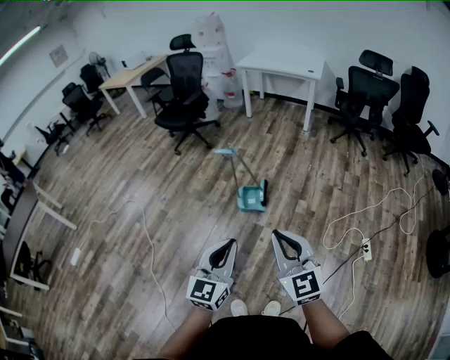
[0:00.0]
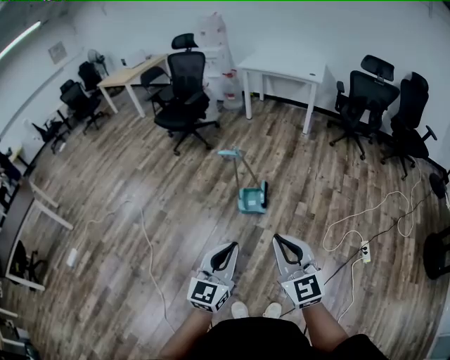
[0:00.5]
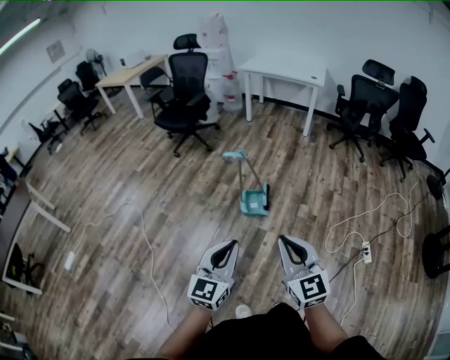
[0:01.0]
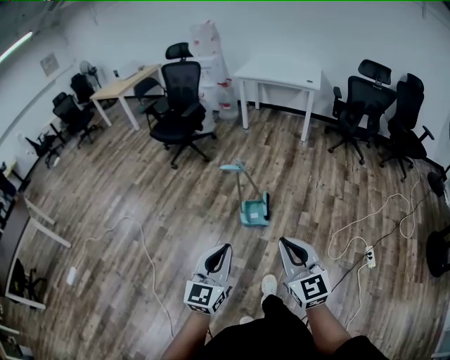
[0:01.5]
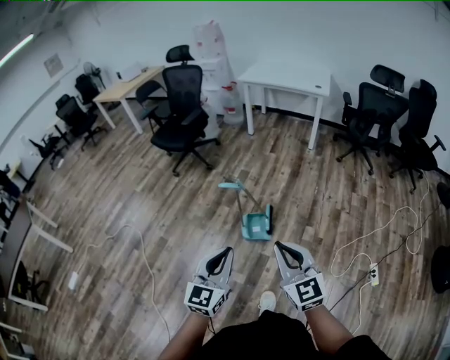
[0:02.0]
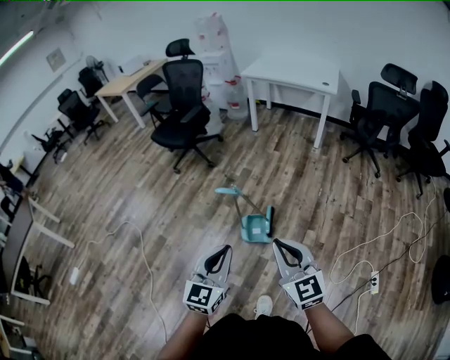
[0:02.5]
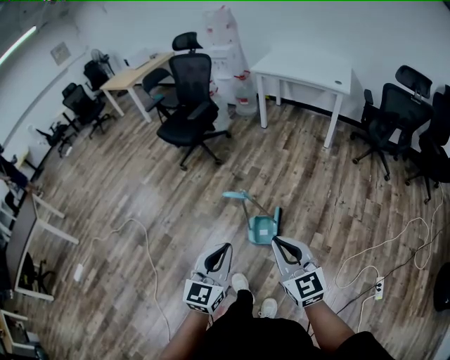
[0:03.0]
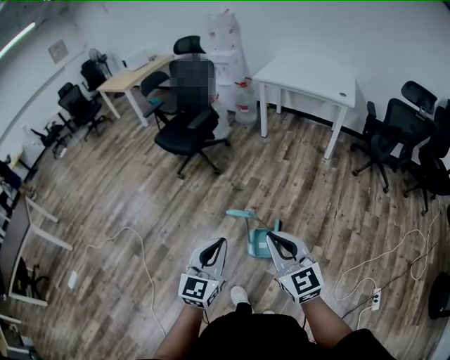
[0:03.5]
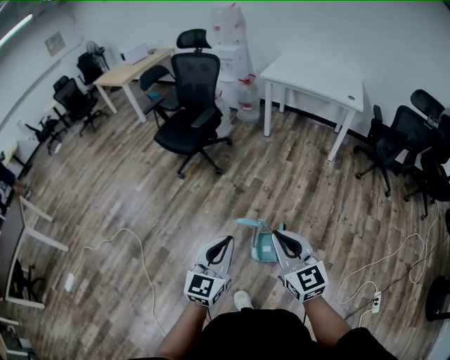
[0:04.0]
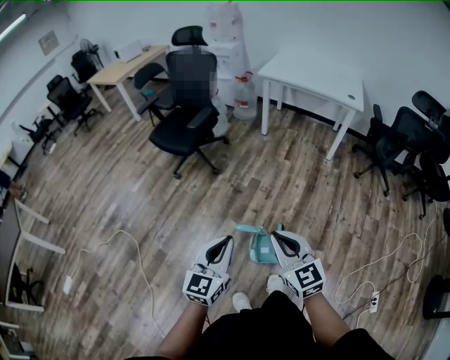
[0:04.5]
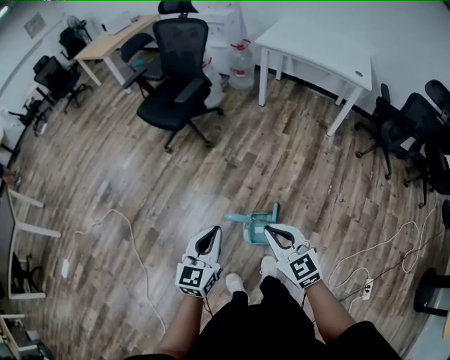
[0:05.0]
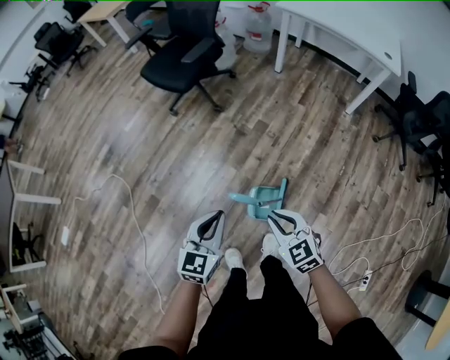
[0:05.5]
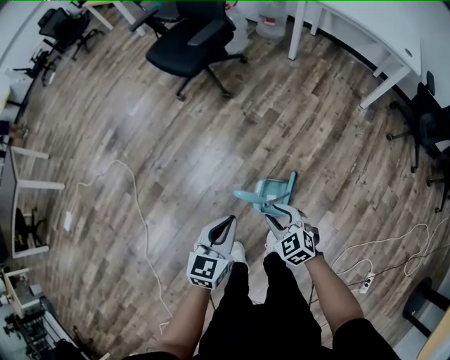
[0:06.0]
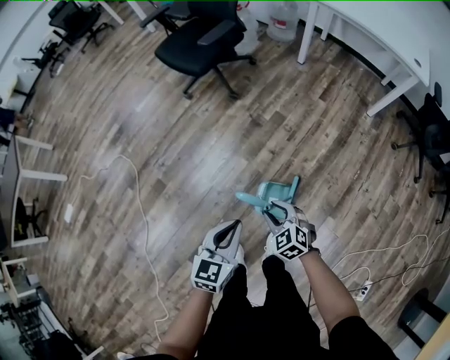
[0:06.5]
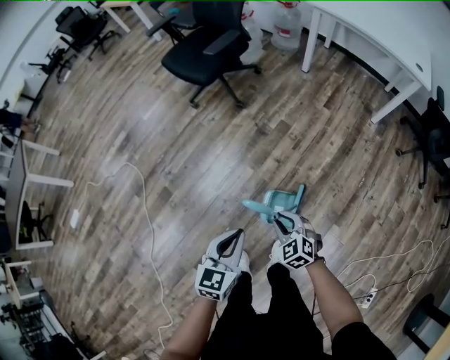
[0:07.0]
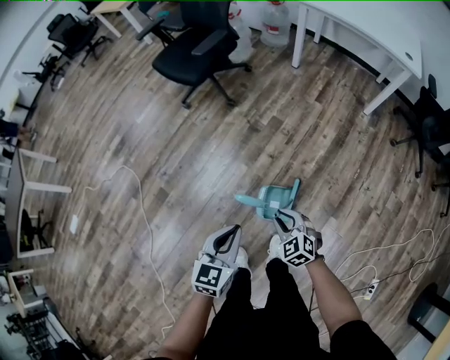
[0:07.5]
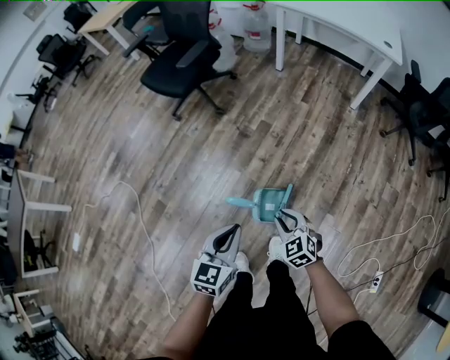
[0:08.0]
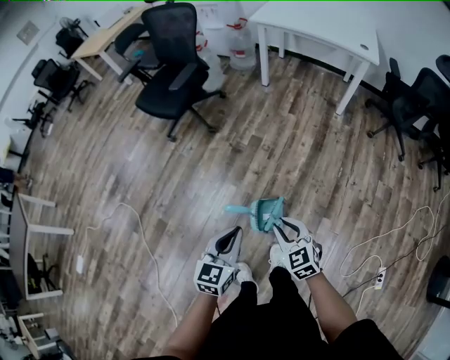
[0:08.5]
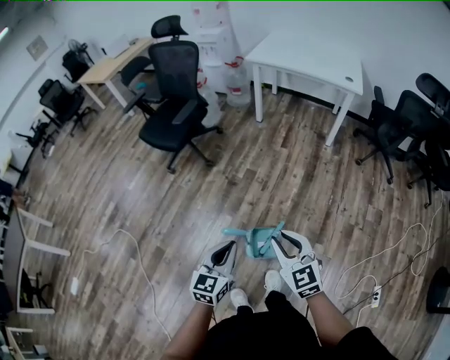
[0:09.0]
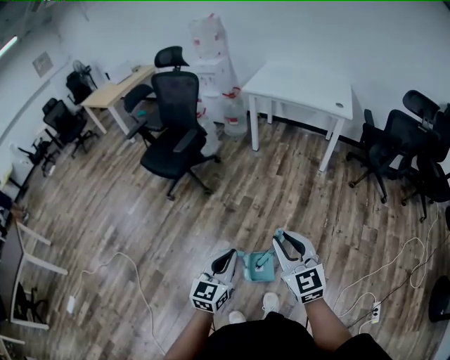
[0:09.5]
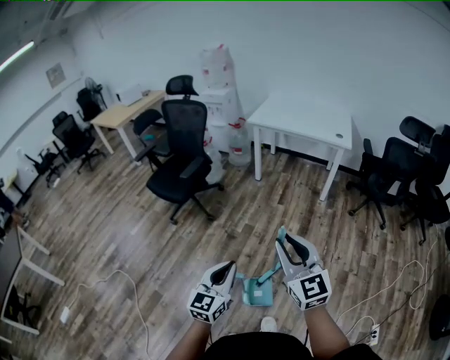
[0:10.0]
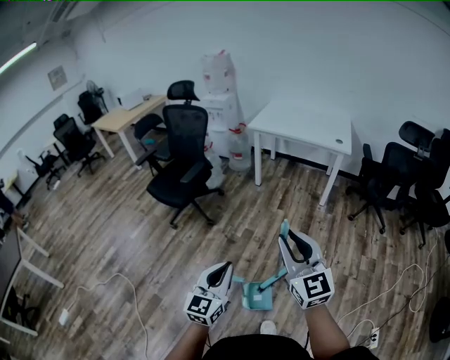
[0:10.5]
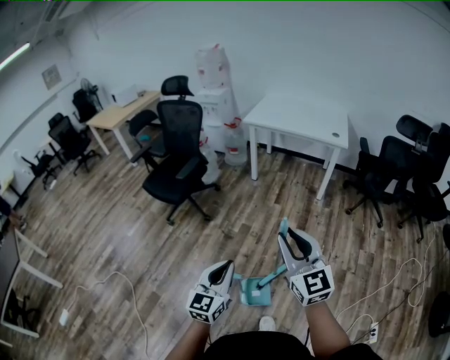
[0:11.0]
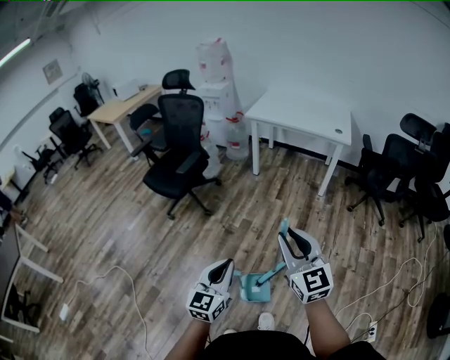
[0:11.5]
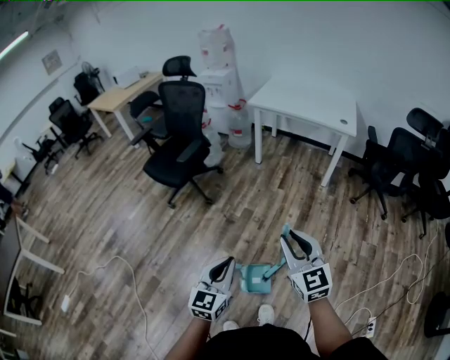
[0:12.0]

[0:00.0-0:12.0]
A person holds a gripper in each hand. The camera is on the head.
0:00.0 to 0:02.0: Both grippers travel together forward, some 15 cm.
0:02.0 to 0:04.0: Both grippers move forward, some 25 cm.
0:04.0 to 0:06.0: The right gripper shifts roughly 25 cm downward, tilts its fingers some 40 degrees downward, and opens its fingers. The left gripper shifts some 15 cm downward, and turns by approximately 20 degrees.
0:06.0 to 0:08.0: The grippers move only a little.
0:08.0 to 0:10.0: The right gripper travels upward by approximately 35 cm, and tilts its fingers roughly 40 degrees upward, while the left gripper shifts roughly 15 cm upward and forward, and swivels some 20 degrees.
0:10.0 to 0:12.0: The right gripper goes roughly 5 cm downward.

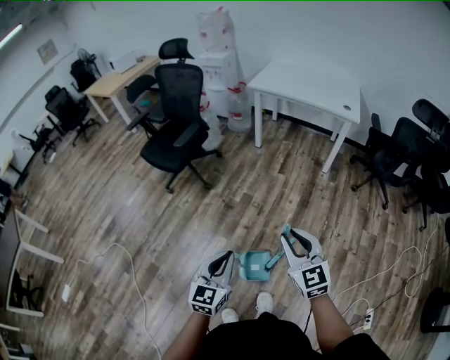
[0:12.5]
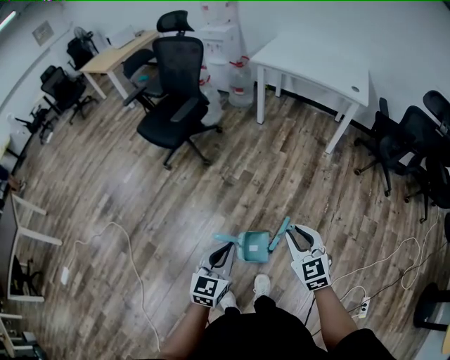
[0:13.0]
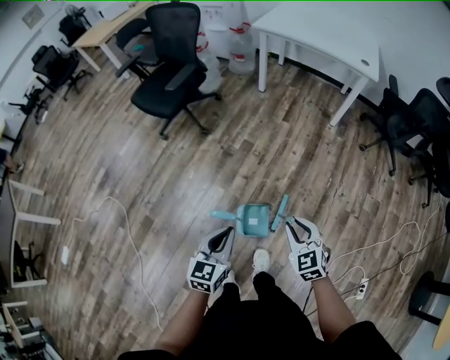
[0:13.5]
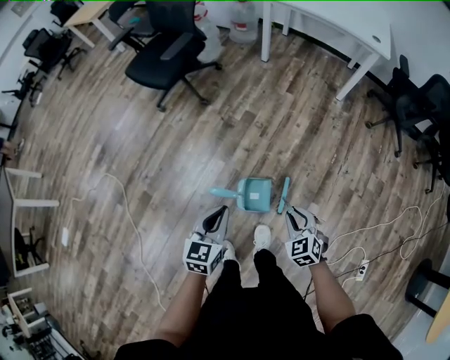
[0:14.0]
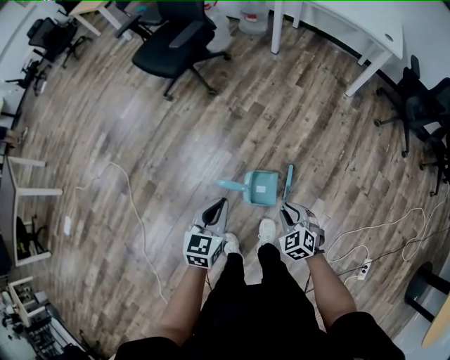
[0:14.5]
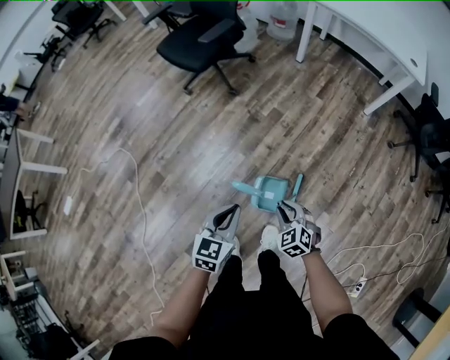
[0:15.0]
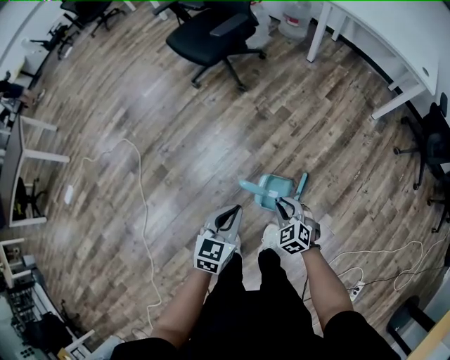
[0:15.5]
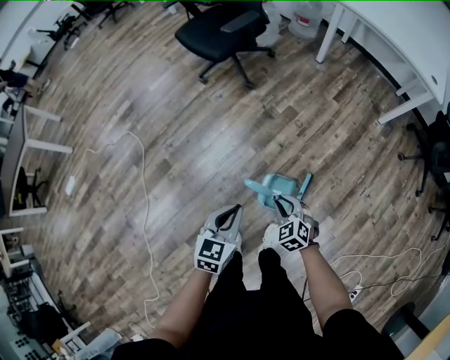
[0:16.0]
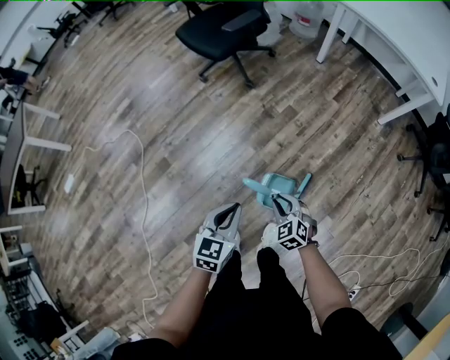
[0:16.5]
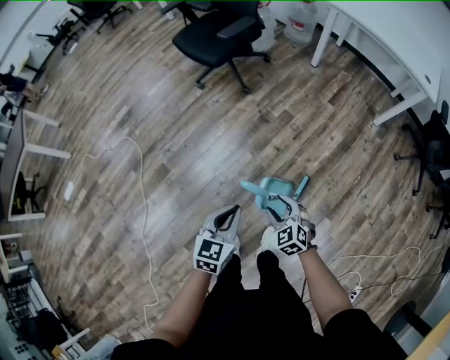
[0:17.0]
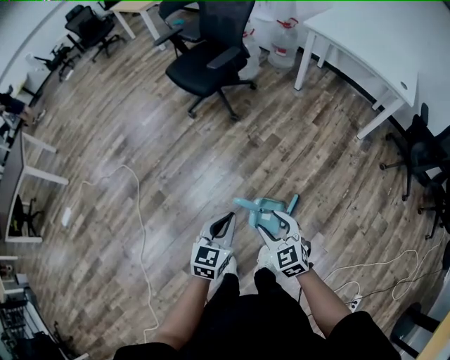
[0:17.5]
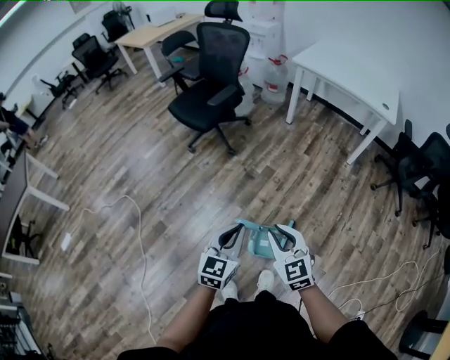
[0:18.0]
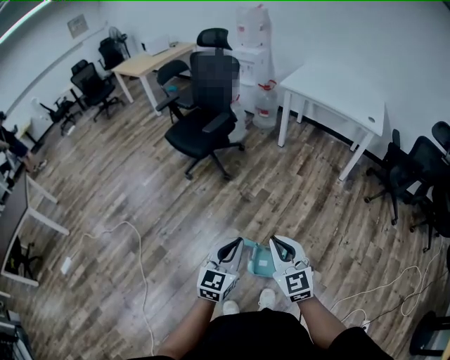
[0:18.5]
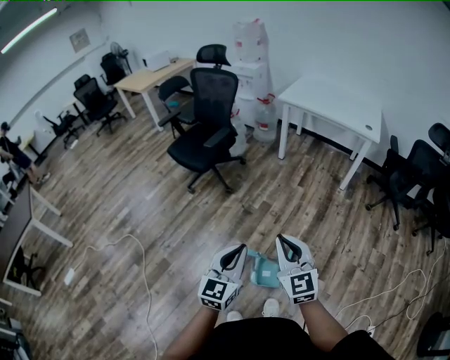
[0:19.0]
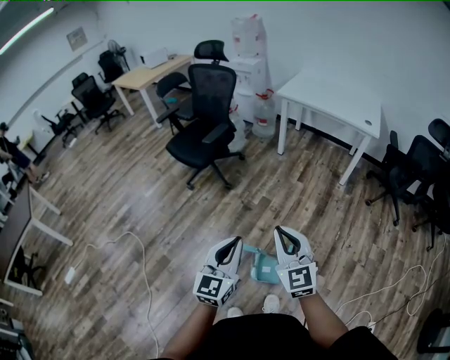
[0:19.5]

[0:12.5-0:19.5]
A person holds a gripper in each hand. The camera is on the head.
0:12.5 to 0:14.5: The left gripper goes roughly 10 cm downward; the right gripper travels downward by approximately 30 cm, and tilts its fingers roughly 40 degrees downward.
0:14.5 to 0:16.0: The right gripper shifts about 10 cm to the left and forward.
0:16.0 to 0:17.5: The right gripper shifts some 15 cm upward, and opens; the left gripper changes place by some 5 cm.
0:17.5 to 0:19.5: The two grippers go some 20 cm upward. The left gripper swivels roughly 20 degrees; the right gripper changes its angle by roughly 30 degrees, and closes its fingers.

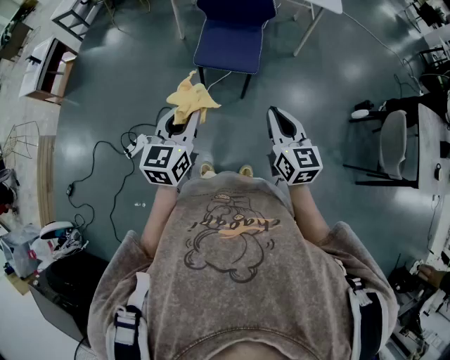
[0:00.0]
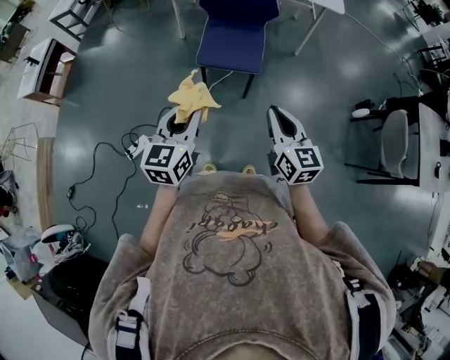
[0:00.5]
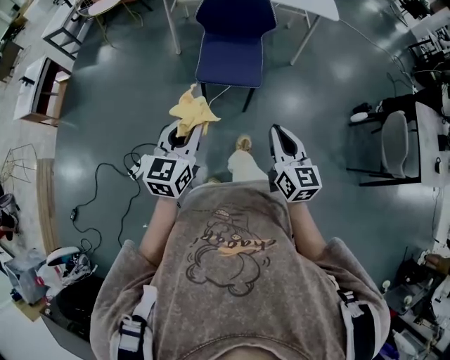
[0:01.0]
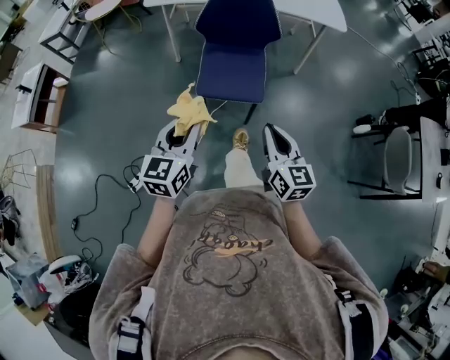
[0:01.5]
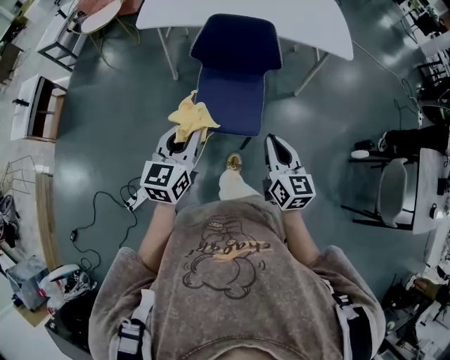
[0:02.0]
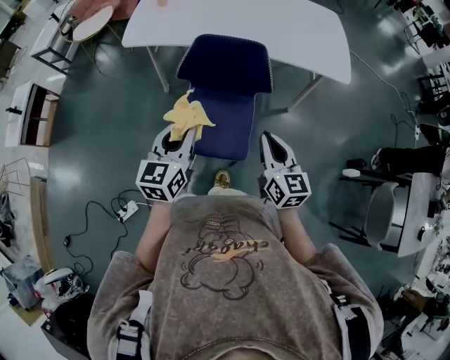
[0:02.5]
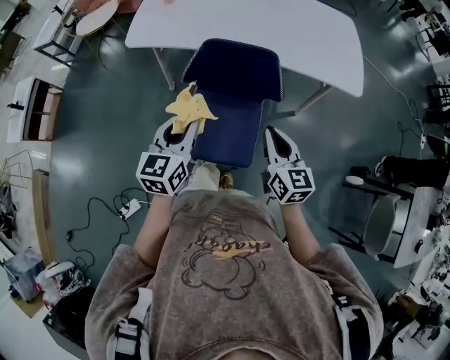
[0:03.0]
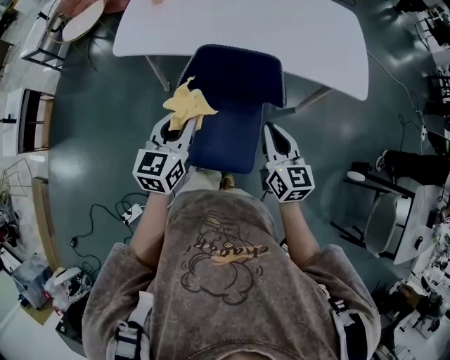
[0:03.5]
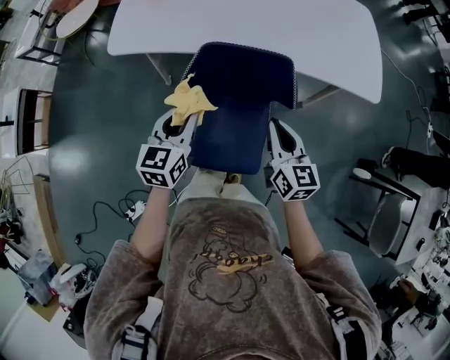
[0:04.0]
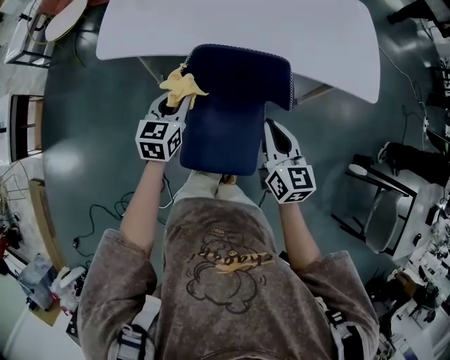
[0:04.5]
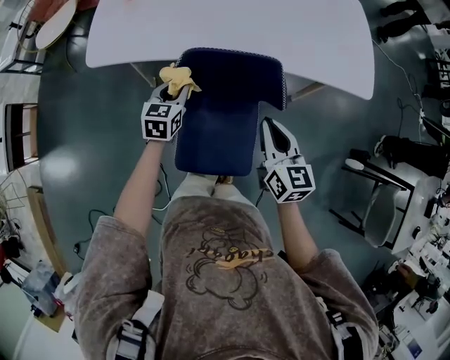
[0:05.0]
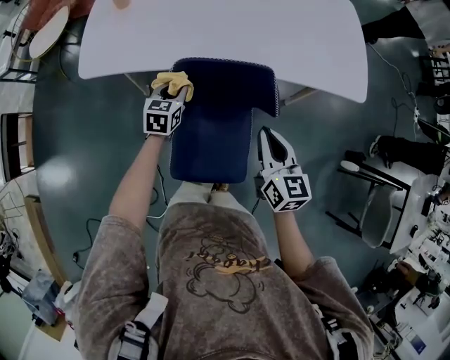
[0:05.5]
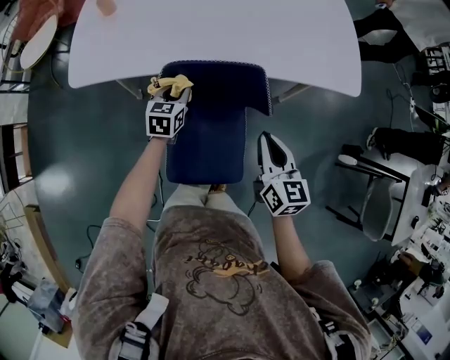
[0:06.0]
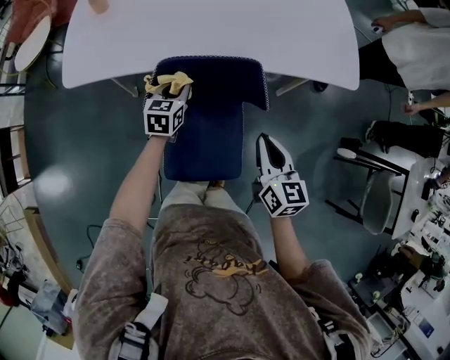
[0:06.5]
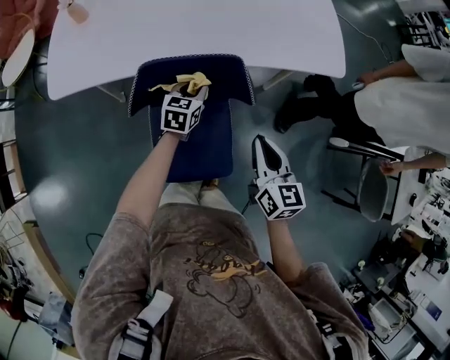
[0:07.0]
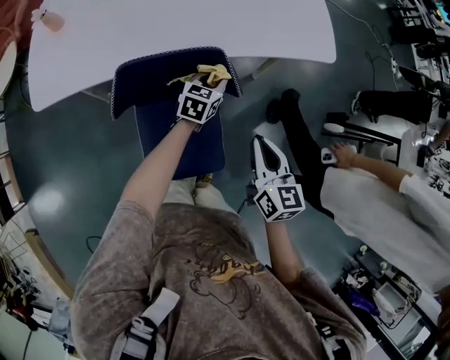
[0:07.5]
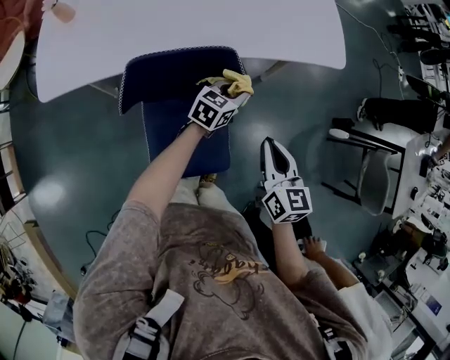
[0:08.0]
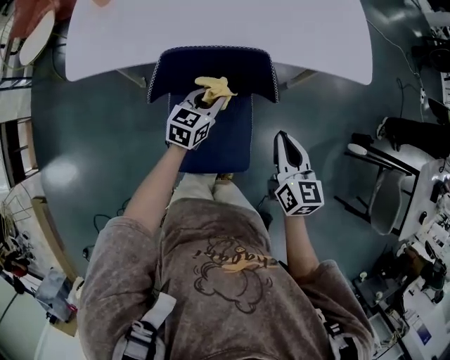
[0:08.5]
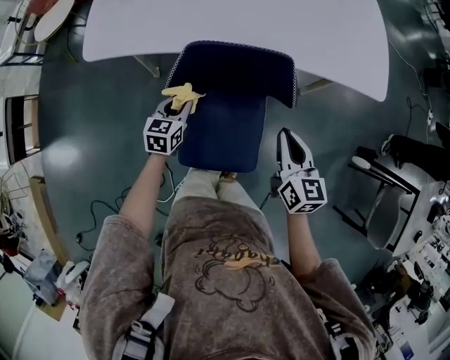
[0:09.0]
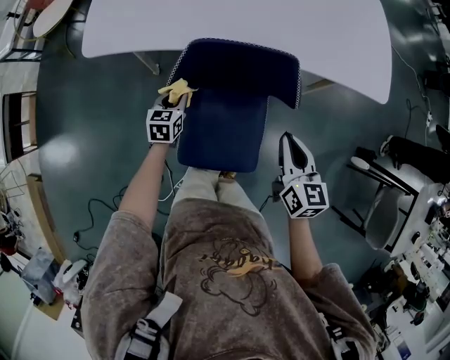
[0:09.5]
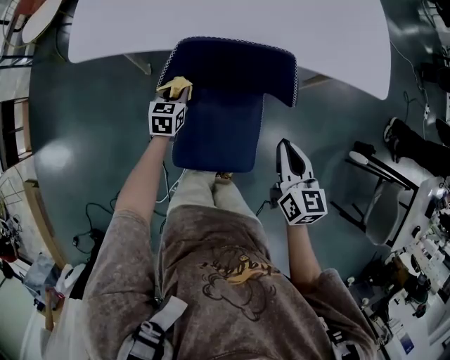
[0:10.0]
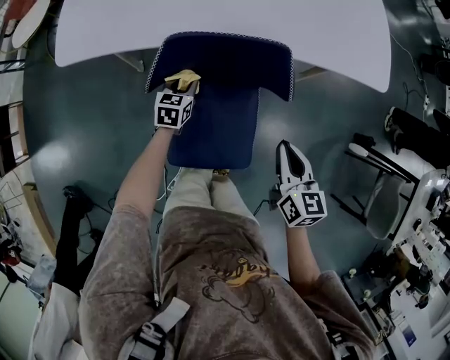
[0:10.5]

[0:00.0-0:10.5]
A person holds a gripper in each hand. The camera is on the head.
0:00.0 to 0:02.0: Both grippers travel together forward, approximately 30 cm.
0:02.0 to 0:04.0: The two grippers go roughly 35 cm forward.
0:04.0 to 0:06.5: The right gripper shifts approximately 5 cm to the right; the left gripper goes some 25 cm forward and downward.
0:06.5 to 0:08.5: The left gripper goes approximately 10 cm to the right.
0:08.5 to 0:10.5: The left gripper goes approximately 20 cm downward and to the left. The right gripper changes place by some 5 cm.
